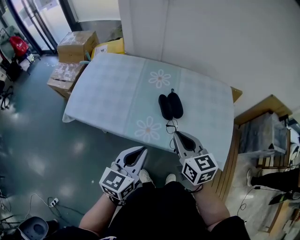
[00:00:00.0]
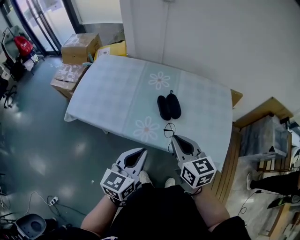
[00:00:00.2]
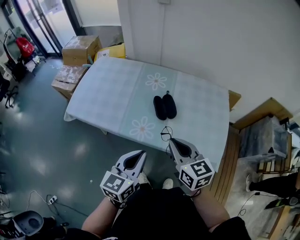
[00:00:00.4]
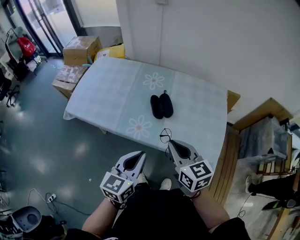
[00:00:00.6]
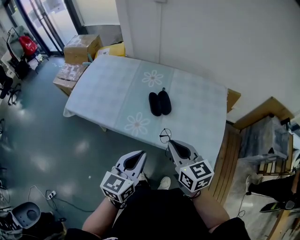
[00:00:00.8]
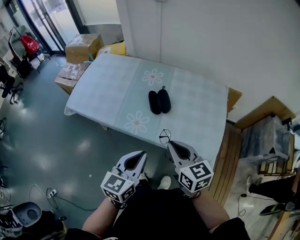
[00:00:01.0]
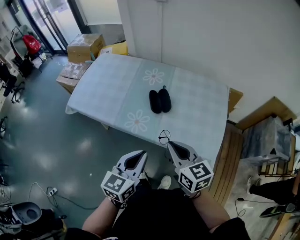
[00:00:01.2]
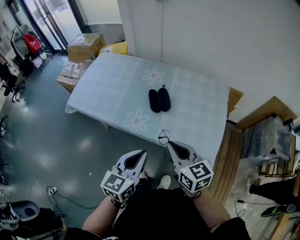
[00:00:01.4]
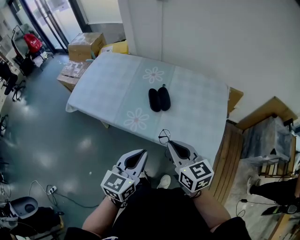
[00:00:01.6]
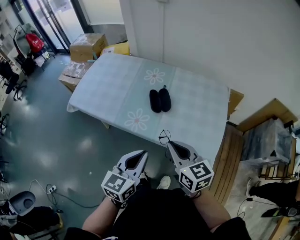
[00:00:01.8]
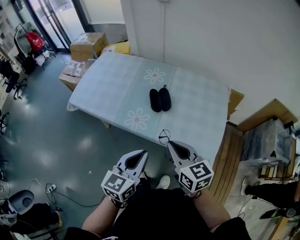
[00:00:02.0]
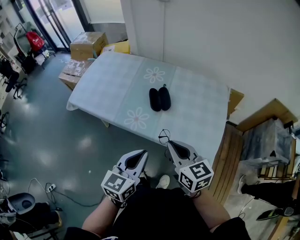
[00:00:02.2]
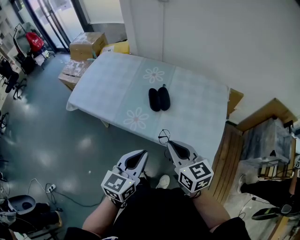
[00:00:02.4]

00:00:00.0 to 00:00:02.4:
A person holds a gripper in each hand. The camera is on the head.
00:00:00.0 to 00:00:01.2: The left gripper moves to the right and backward, roughly 10 cm; the right gripper shifts some 10 cm backward and to the right.
00:00:01.2 to 00:00:02.4: The grippers move only a little.

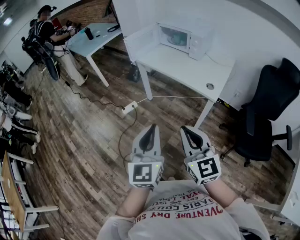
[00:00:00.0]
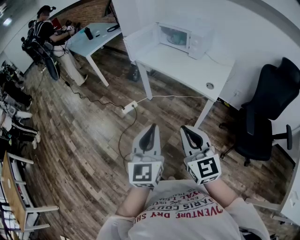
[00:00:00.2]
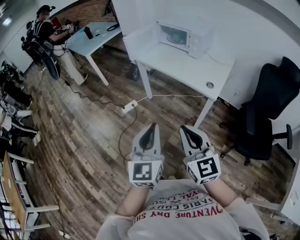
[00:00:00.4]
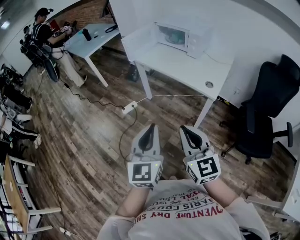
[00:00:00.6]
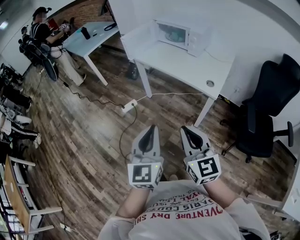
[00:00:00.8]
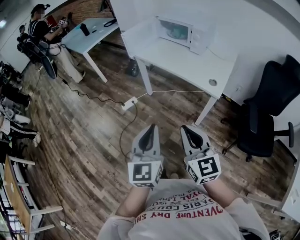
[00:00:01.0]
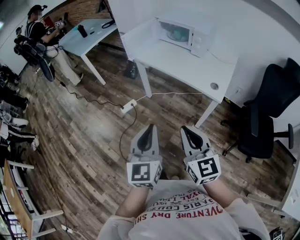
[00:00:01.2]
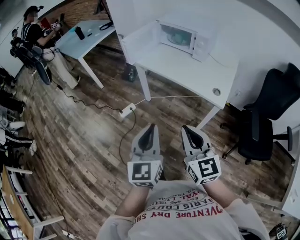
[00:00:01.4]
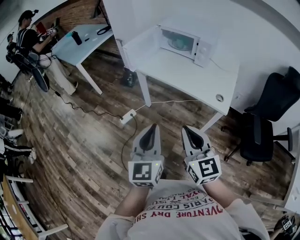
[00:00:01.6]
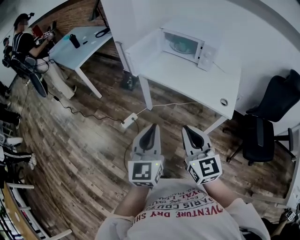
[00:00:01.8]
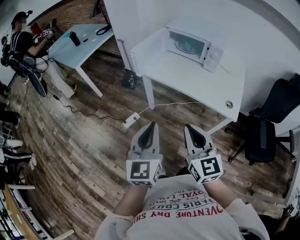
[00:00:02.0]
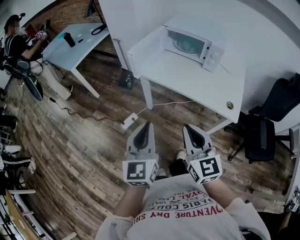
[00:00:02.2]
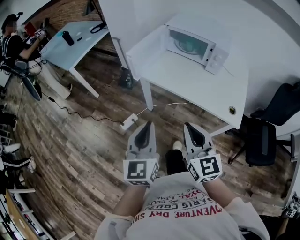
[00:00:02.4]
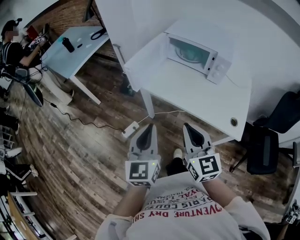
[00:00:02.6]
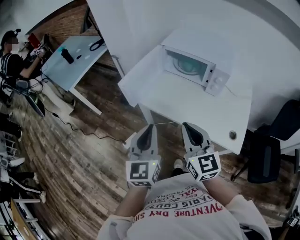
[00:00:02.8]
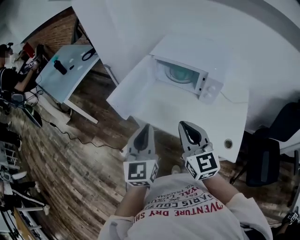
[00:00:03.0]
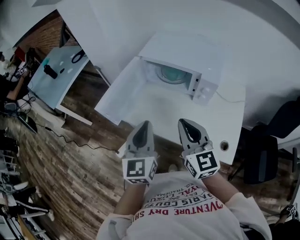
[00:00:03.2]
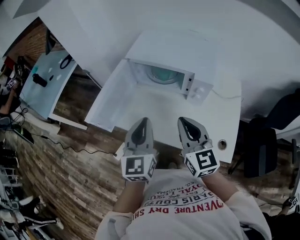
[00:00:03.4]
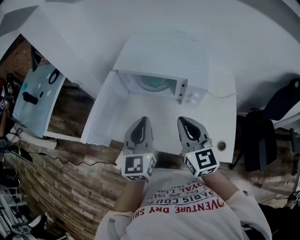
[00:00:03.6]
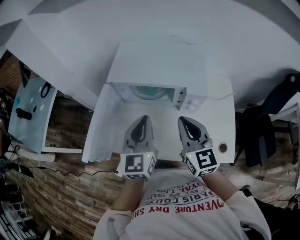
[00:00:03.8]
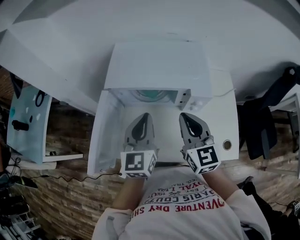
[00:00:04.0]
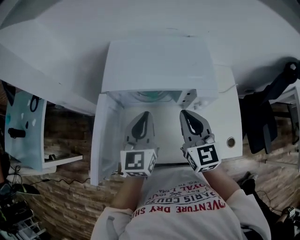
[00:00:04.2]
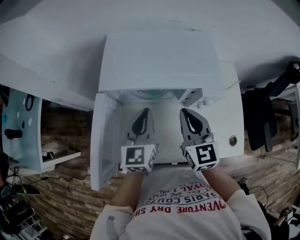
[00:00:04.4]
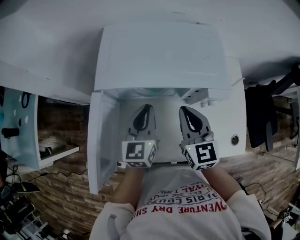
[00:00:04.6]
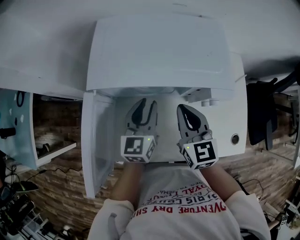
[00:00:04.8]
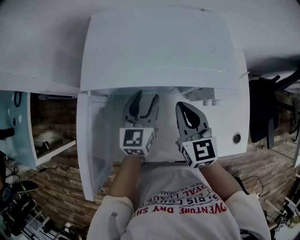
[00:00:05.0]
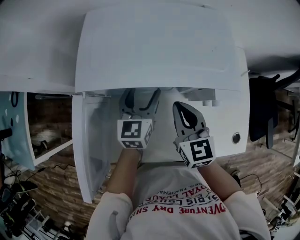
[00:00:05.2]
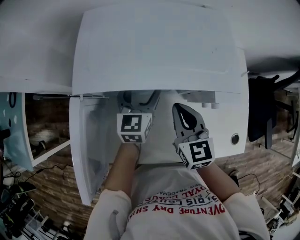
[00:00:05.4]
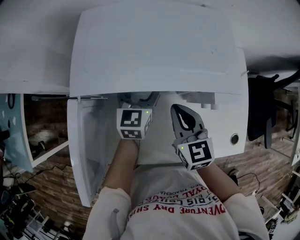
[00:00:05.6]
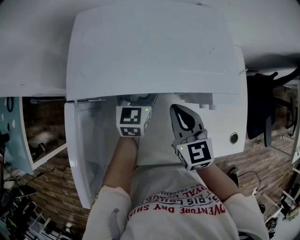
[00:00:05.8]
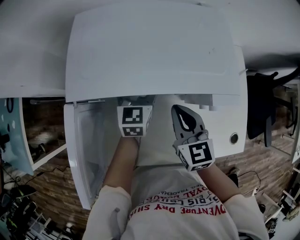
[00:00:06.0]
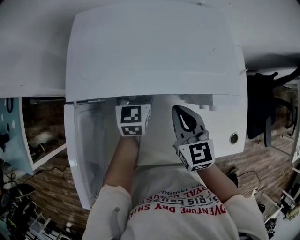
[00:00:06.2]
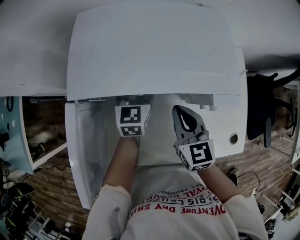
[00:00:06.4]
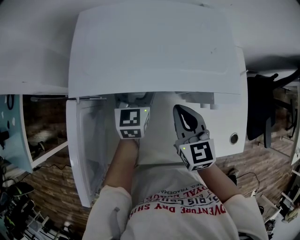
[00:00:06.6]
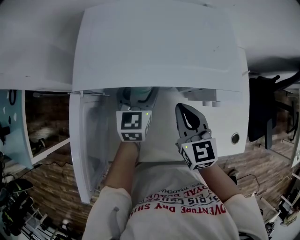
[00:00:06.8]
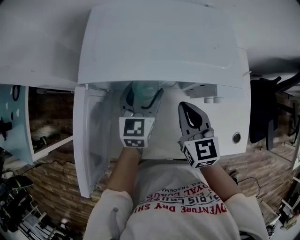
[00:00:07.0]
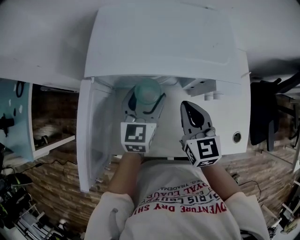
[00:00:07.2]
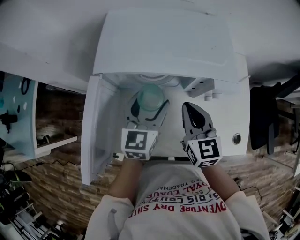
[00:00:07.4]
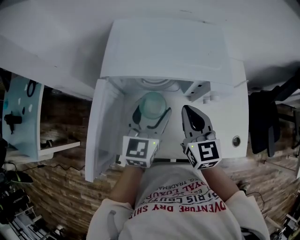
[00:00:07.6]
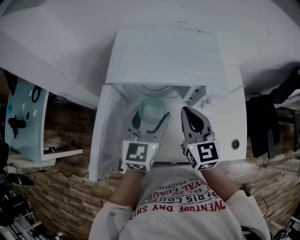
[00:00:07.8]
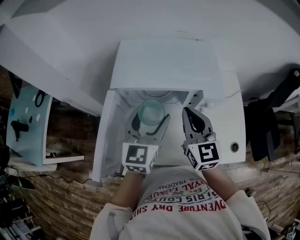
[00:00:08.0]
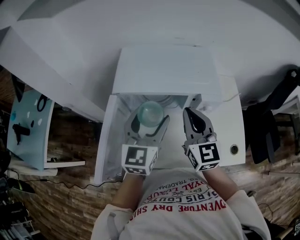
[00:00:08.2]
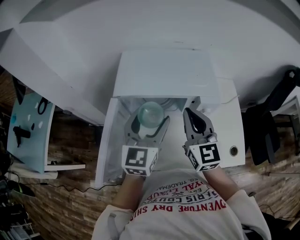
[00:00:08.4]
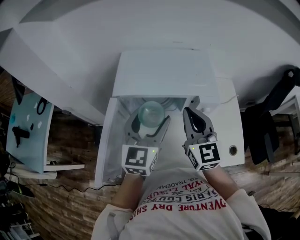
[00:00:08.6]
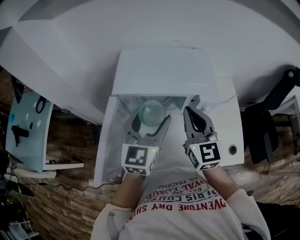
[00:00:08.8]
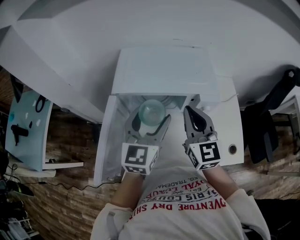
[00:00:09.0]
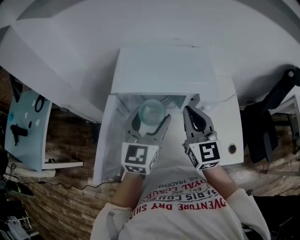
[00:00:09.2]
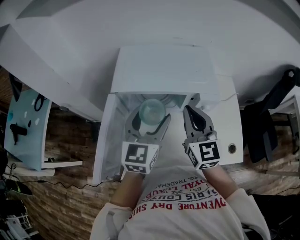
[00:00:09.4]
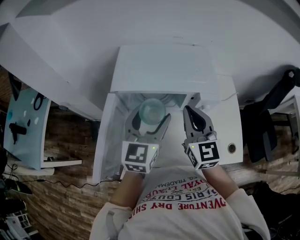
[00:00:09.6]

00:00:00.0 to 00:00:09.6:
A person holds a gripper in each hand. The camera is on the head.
00:00:00.0 to 00:00:01.6: Both grippers move forward and to the left, roughly 20 cm.
00:00:01.6 to 00:00:03.2: Both grippers are carried forward, about 40 cm.
00:00:03.2 to 00:00:04.8: The left gripper changes place by roughly 35 cm, and rotates about 30 degrees; the right gripper moves roughly 25 cm, and changes its angle by approximately 30 degrees.
00:00:04.8 to 00:00:06.4: The right gripper travels downward by approximately 5 cm. The left gripper shifts approximately 10 cm forward and downward, and opens.
00:00:06.4 to 00:00:08.0: The right gripper moves upward, approximately 15 cm; the left gripper travels upward and backward by about 25 cm.
00:00:08.0 to 00:00:09.6: The grippers move only a little.

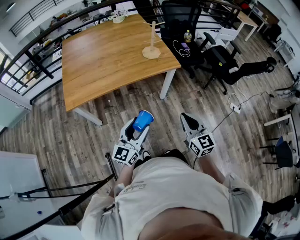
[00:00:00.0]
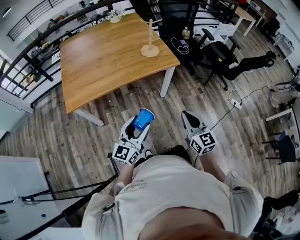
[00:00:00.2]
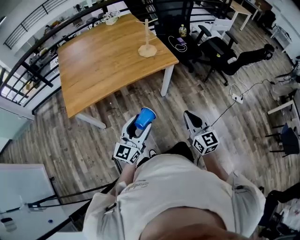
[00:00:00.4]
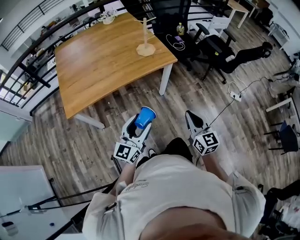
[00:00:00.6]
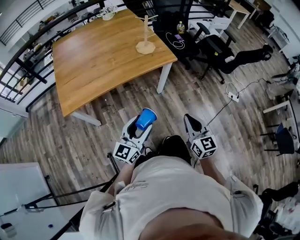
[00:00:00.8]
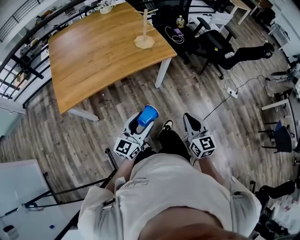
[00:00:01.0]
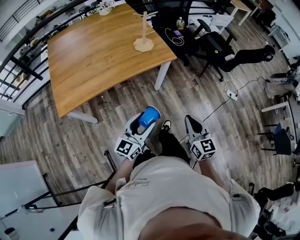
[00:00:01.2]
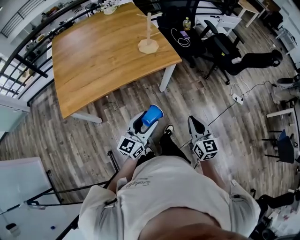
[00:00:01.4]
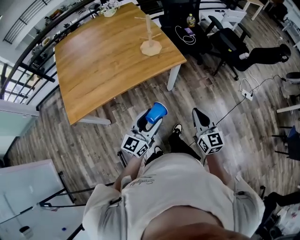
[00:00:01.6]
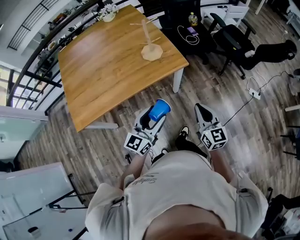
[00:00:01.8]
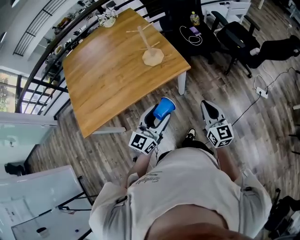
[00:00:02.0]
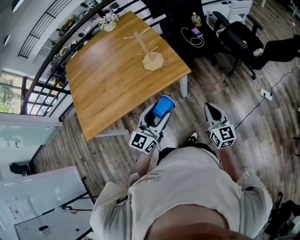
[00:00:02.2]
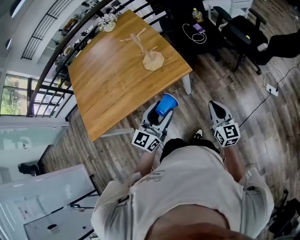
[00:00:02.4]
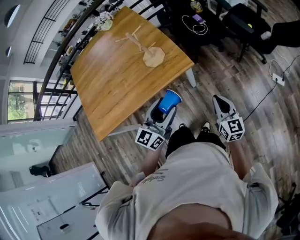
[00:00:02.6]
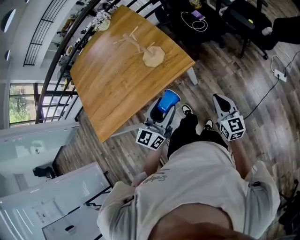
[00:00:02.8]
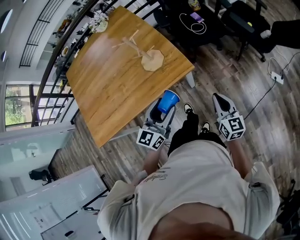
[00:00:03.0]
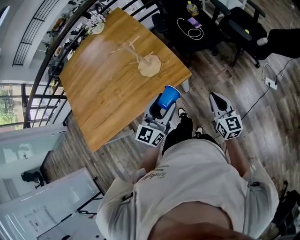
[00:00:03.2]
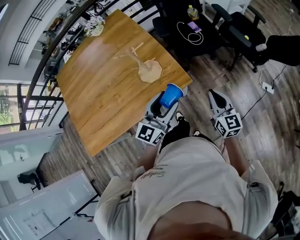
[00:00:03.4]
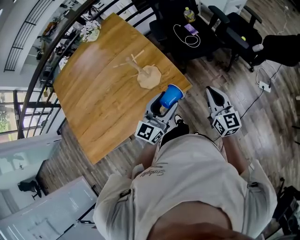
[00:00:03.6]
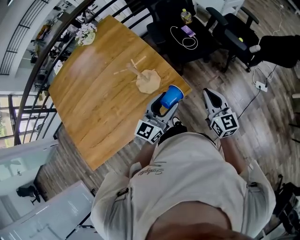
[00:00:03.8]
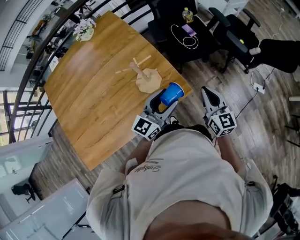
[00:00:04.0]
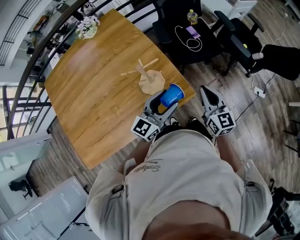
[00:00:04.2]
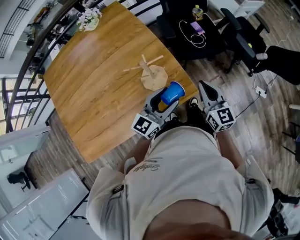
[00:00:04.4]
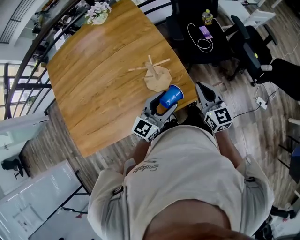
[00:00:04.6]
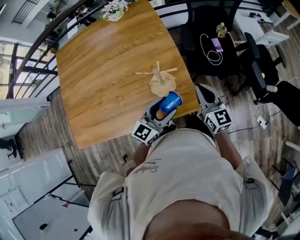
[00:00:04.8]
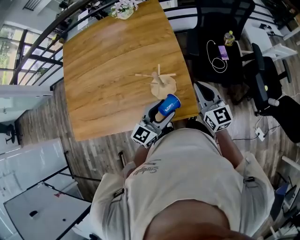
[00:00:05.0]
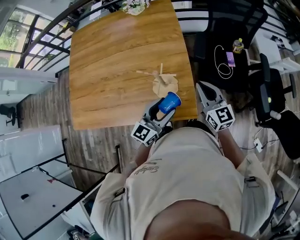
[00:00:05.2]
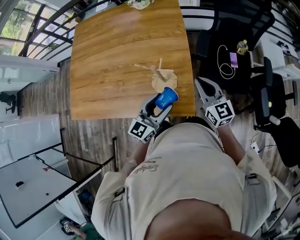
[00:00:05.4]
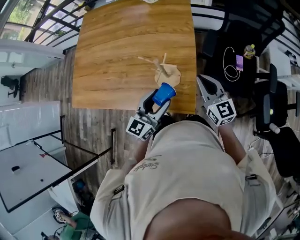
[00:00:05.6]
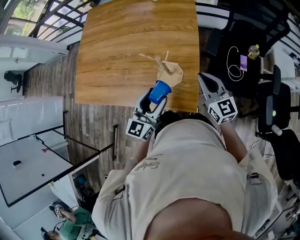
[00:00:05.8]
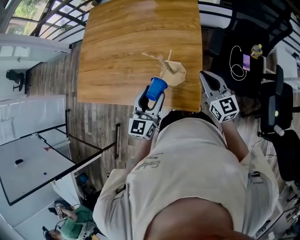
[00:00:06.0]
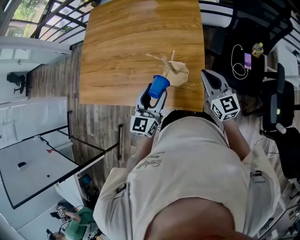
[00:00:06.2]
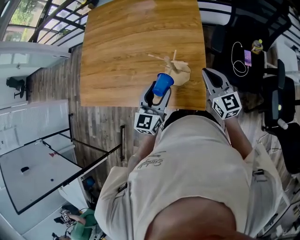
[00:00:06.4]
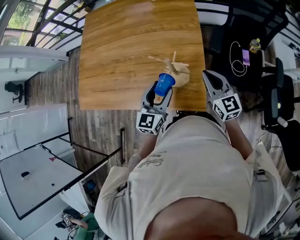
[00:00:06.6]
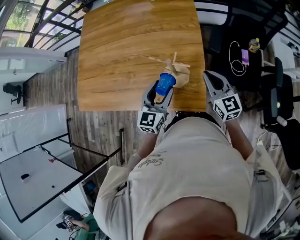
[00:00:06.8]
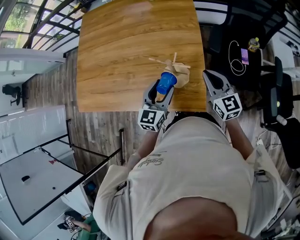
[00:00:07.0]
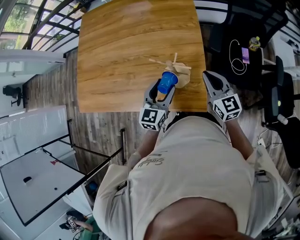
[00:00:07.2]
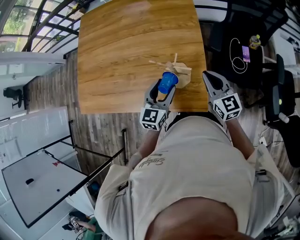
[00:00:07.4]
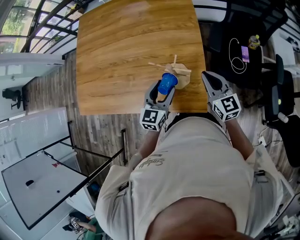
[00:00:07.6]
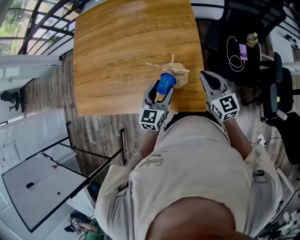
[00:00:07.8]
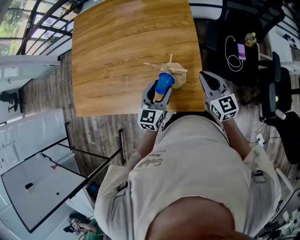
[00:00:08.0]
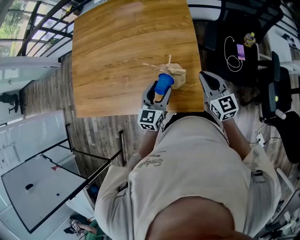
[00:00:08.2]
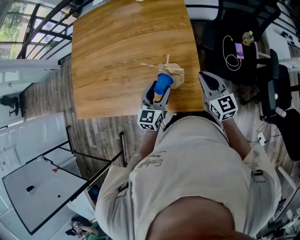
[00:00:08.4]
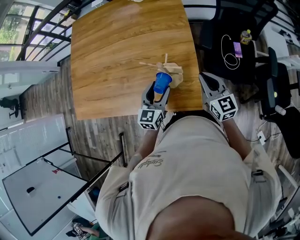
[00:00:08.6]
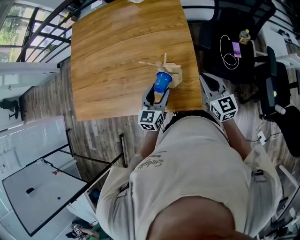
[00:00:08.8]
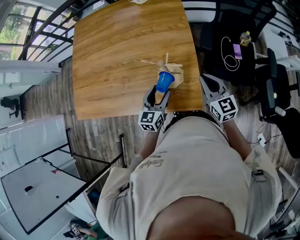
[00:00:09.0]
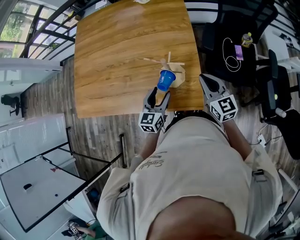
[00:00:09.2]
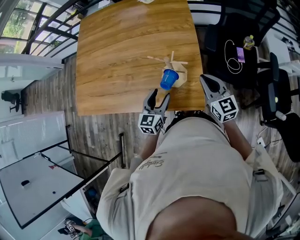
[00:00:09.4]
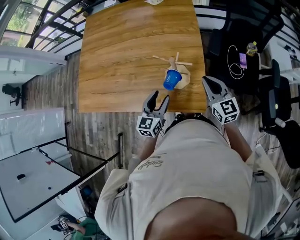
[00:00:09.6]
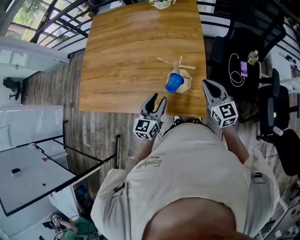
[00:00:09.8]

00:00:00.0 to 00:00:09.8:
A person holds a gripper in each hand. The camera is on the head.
00:00:00.0 to 00:00:01.4: The left gripper heads forward, covering roughly 10 cm. The right gripper goes roughly 5 cm forward.
00:00:01.4 to 00:00:02.8: The left gripper moves forward, approximately 25 cm. The right gripper goes about 30 cm forward and to the right.
00:00:02.8 to 00:00:04.2: The left gripper heads forward, covering roughly 20 cm, while the right gripper travels forward and to the left by approximately 25 cm.
00:00:04.2 to 00:00:05.6: The left gripper swivels approximately 40 degrees; the right gripper shifts by some 15 cm, and swivels approximately 50 degrees.
00:00:05.6 to 00:00:07.0: The left gripper goes about 5 cm forward.
00:00:07.0 to 00:00:08.4: The grippers make only small movements.
00:00:08.4 to 00:00:09.8: The left gripper moves backward and to the left, some 10 cm.

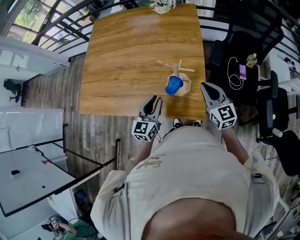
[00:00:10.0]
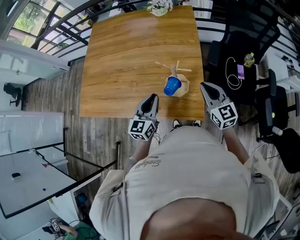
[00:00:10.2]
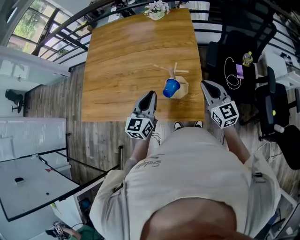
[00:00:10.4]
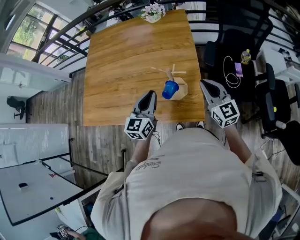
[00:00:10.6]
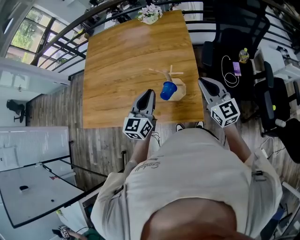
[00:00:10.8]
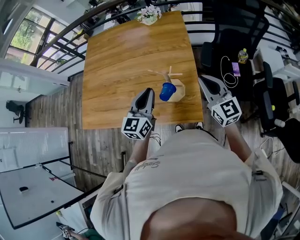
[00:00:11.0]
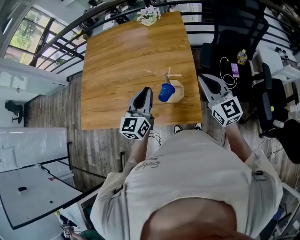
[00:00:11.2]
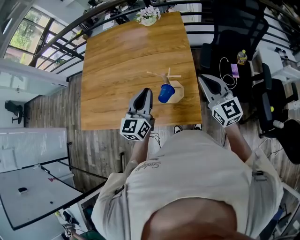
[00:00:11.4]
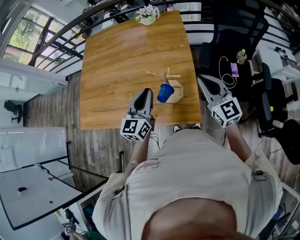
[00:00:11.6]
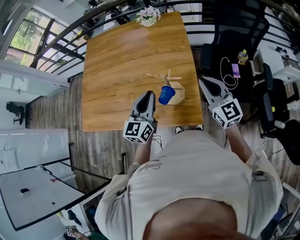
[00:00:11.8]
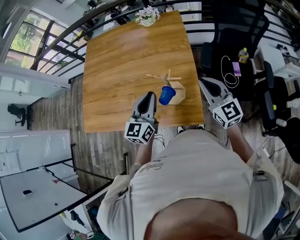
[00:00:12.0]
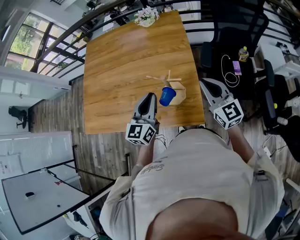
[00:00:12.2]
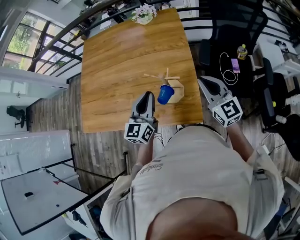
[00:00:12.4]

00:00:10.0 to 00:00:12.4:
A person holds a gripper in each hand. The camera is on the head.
00:00:10.0 to 00:00:11.2: The two grippers go roughly 10 cm upward.
00:00:11.2 to 00:00:12.4: The grippers make only small movements.
